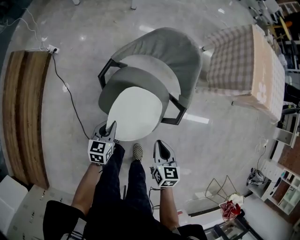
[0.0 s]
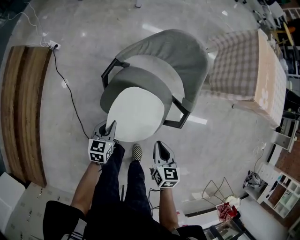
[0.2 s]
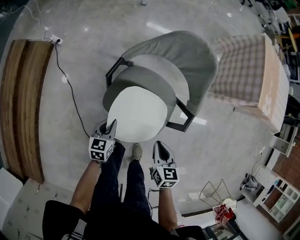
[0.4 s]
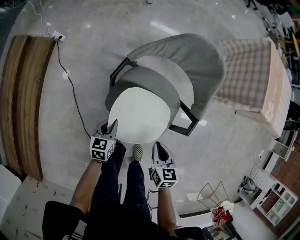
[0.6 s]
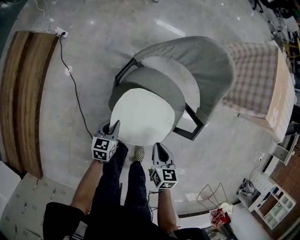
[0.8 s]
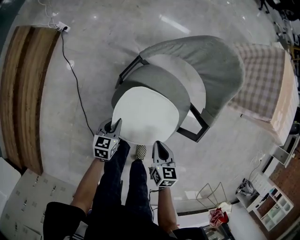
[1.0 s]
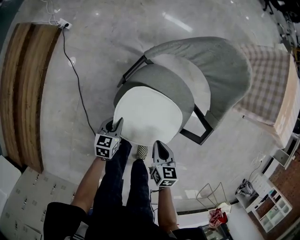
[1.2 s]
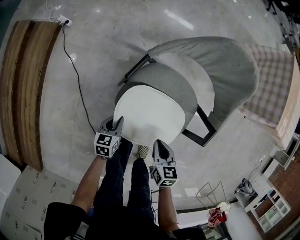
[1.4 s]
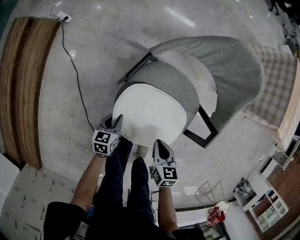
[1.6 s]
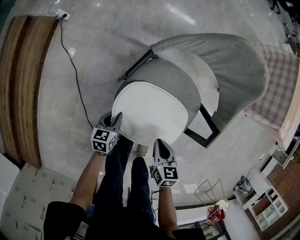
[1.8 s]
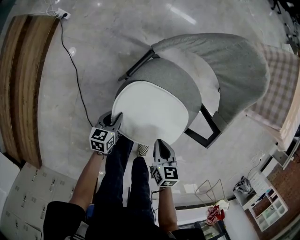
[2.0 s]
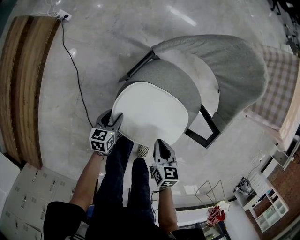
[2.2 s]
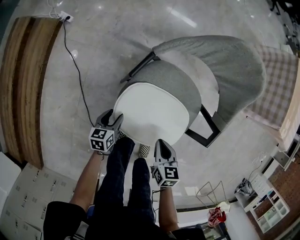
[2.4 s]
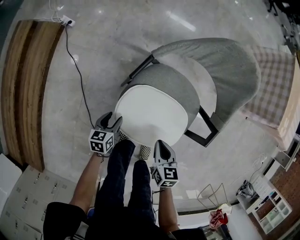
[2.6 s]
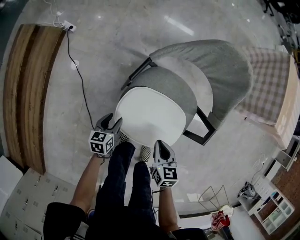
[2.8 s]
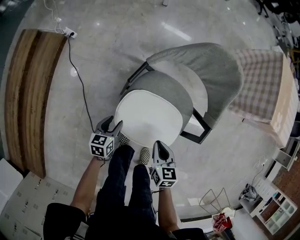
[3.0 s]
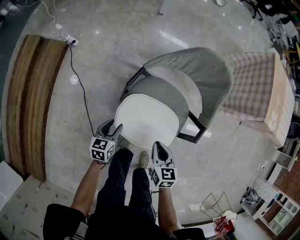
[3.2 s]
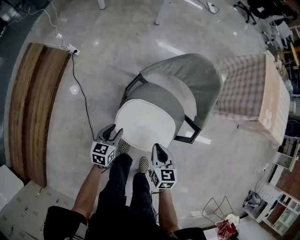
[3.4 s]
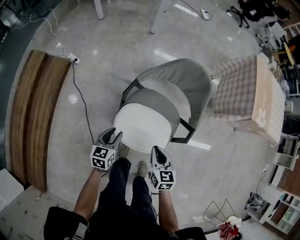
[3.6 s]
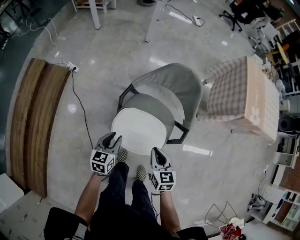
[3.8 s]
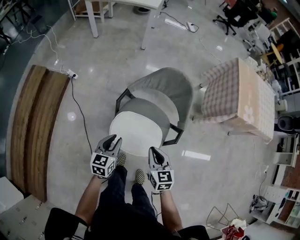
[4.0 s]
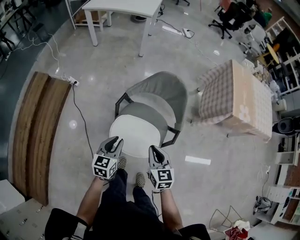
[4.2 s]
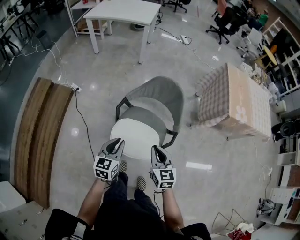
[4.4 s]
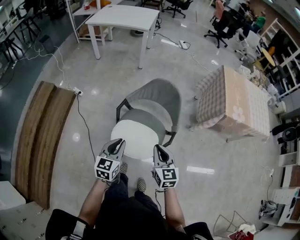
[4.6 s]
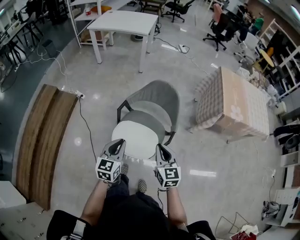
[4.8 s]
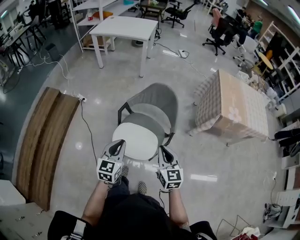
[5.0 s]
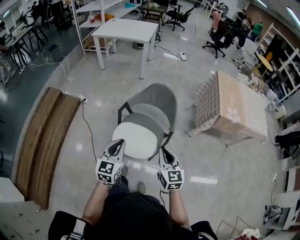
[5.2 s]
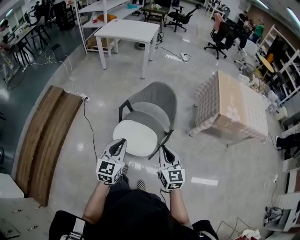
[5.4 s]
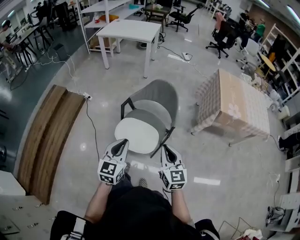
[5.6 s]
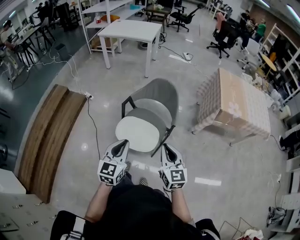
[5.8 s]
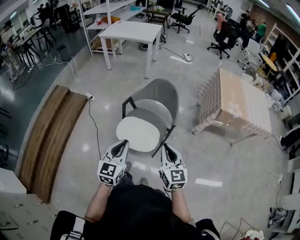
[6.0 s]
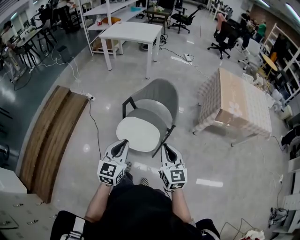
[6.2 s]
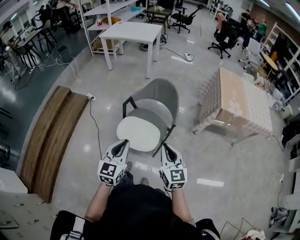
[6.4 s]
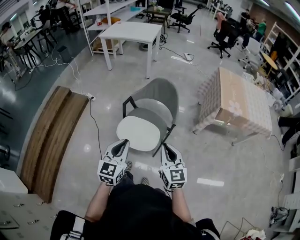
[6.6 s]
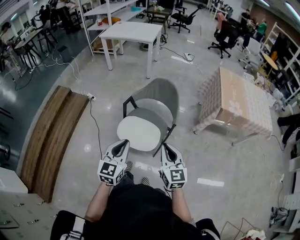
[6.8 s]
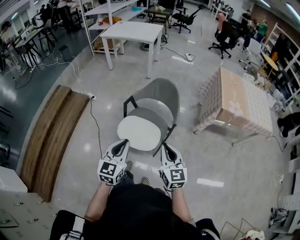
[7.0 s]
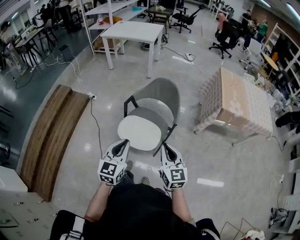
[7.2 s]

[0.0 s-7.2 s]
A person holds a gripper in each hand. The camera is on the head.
0.0 to 1.4 s: The grippers both shift downward and to the left by some 20 cm.
1.4 to 2.8 s: The left gripper opens up.
2.8 to 4.4 s: The grippers both shift upward by approximately 35 cm. The right gripper swivels some 30 degrees; the left gripper changes its angle by some 30 degrees, and closes.
4.4 to 5.8 s: The grippers both shift backward, upward and to the right by some 25 cm.
5.8 to 7.2 s: The grippers move only a little.

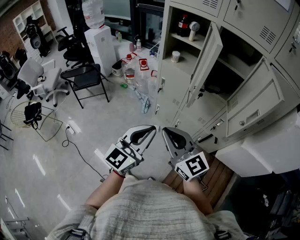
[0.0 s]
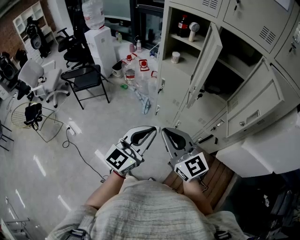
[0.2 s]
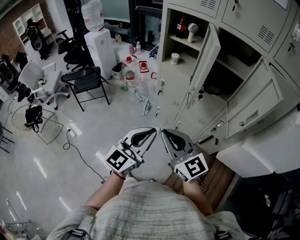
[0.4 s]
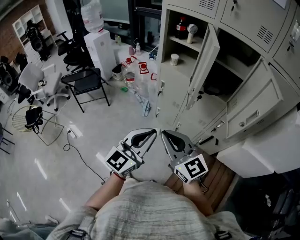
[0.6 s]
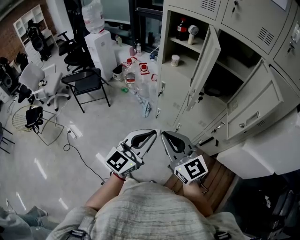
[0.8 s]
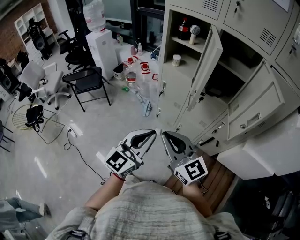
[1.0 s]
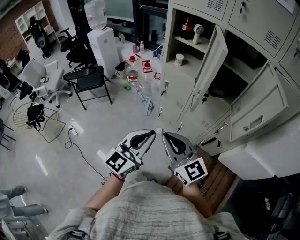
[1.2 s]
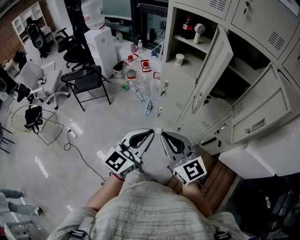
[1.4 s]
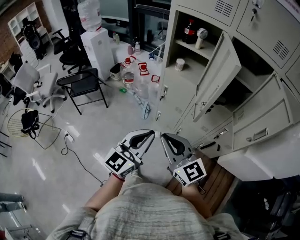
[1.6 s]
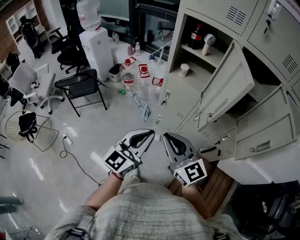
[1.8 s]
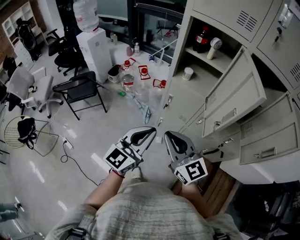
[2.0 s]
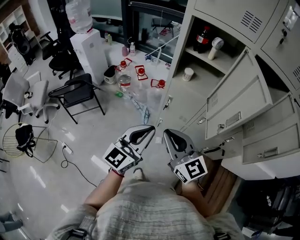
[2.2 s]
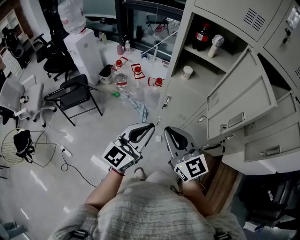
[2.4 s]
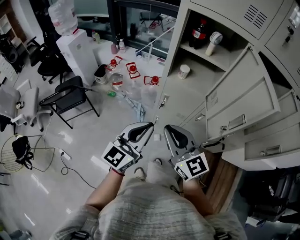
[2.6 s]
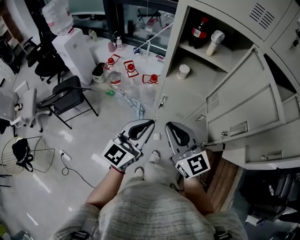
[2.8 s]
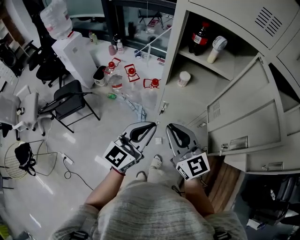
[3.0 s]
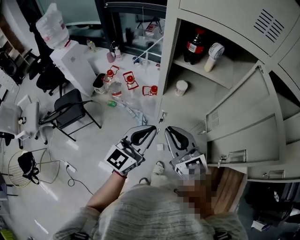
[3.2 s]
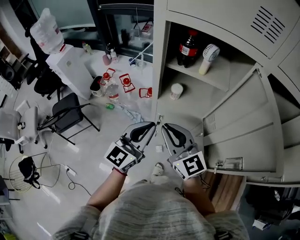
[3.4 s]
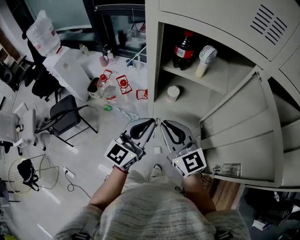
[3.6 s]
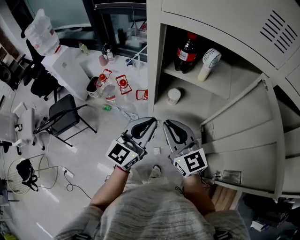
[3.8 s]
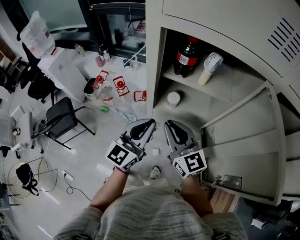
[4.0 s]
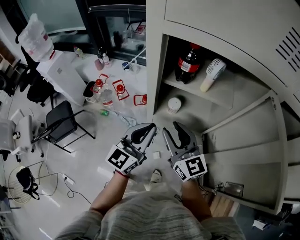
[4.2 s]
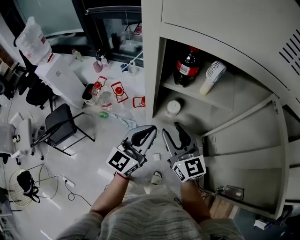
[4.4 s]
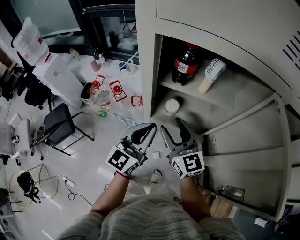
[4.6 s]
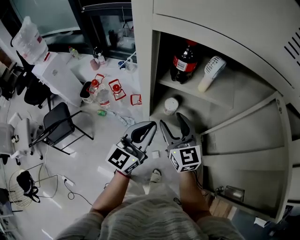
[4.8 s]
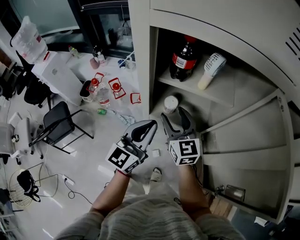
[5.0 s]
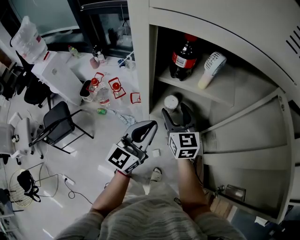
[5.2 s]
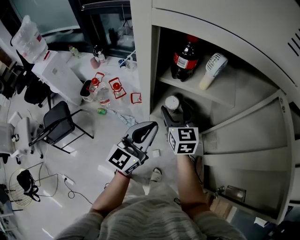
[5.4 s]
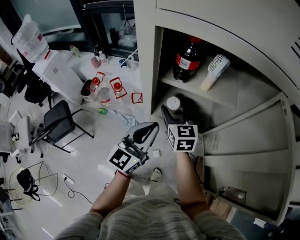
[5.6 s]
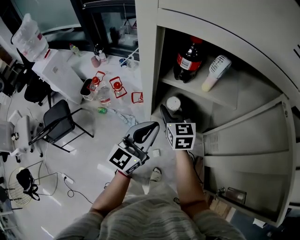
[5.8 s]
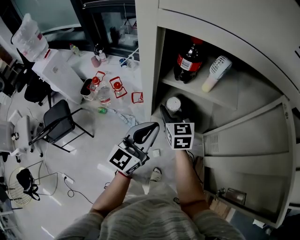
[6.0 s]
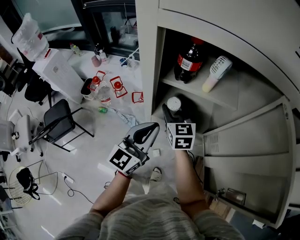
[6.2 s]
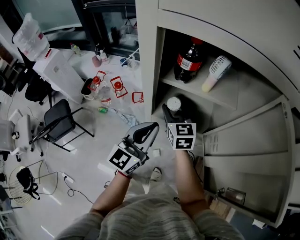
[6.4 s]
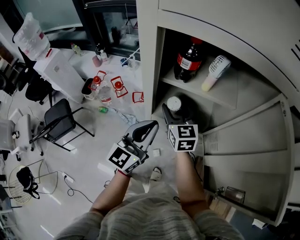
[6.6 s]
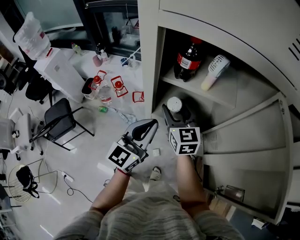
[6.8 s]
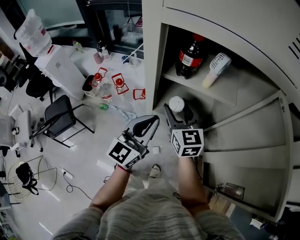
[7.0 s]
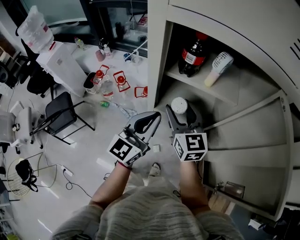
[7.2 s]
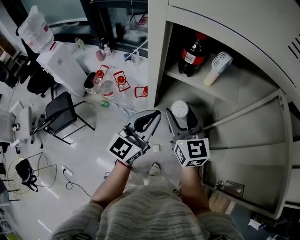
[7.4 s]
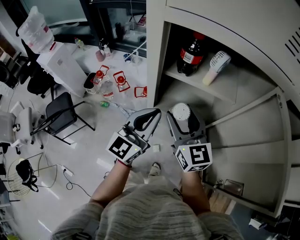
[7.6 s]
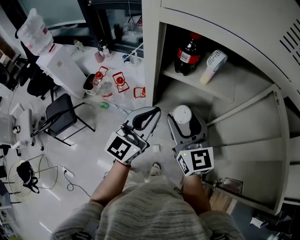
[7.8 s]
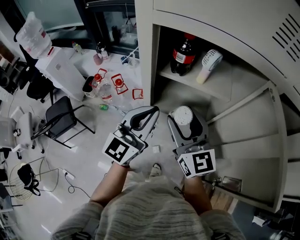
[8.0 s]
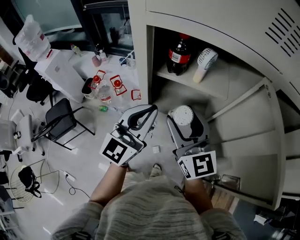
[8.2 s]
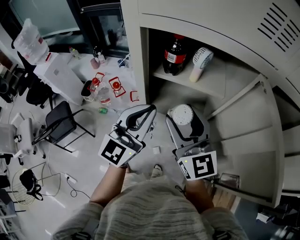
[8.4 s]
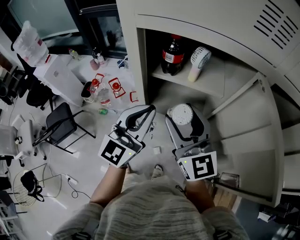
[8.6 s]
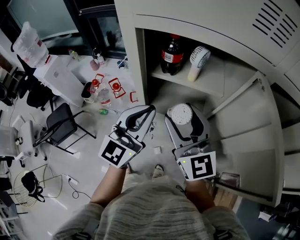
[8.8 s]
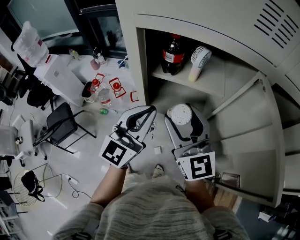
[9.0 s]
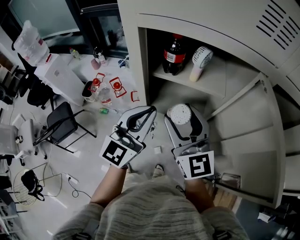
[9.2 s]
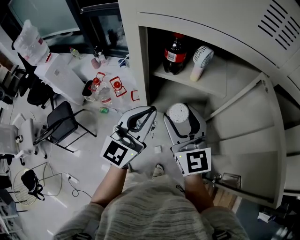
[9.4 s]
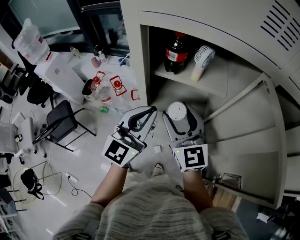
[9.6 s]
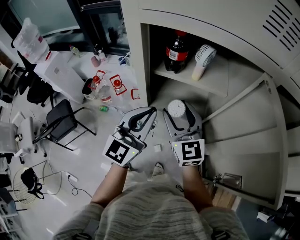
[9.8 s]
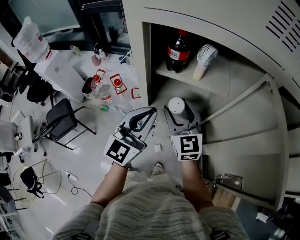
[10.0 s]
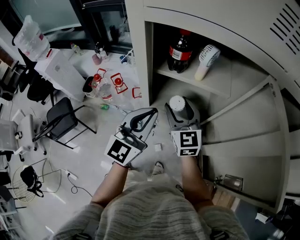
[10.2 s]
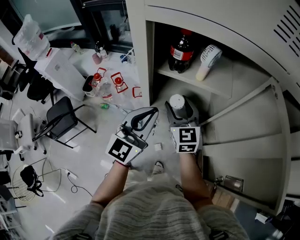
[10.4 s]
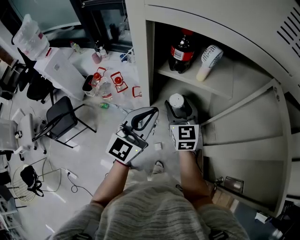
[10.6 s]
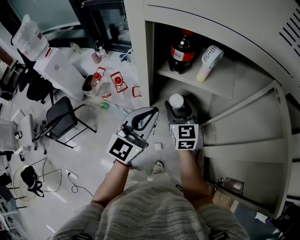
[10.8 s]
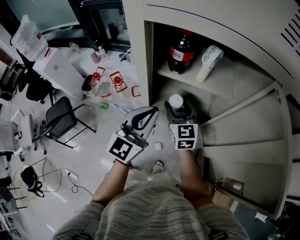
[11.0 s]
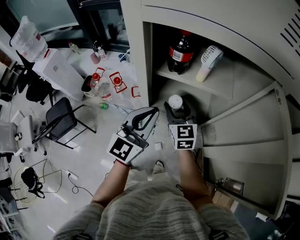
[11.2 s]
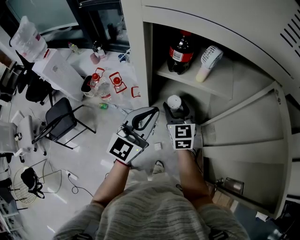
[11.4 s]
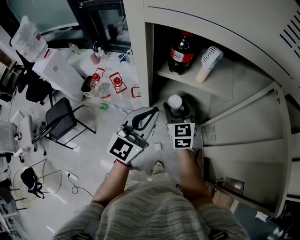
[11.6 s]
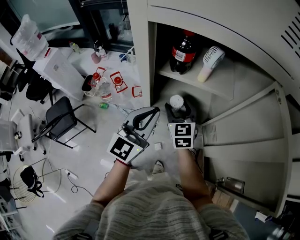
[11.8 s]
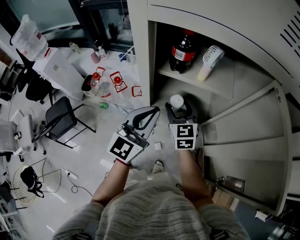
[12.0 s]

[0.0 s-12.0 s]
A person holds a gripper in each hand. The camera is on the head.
0.0 to 1.6 s: The grippers both shift forward by roughly 5 cm.
1.6 to 3.0 s: The two grippers go approximately 25 cm forward.
3.0 to 4.4 s: Both grippers move forward, roughly 20 cm. The right gripper opens its fingers.
4.4 to 6.0 s: The right gripper shifts approximately 15 cm forward and downward, rotates some 20 degrees, and opens up.
6.0 to 7.6 s: The right gripper goes approximately 15 cm upward and backward.
7.6 to 9.0 s: Both grippers travel together upward, about 5 cm.
9.0 to 10.4 s: The right gripper moves downward and forward, approximately 15 cm; the left gripper goes approximately 5 cm downward.
10.4 to 12.0 s: There are only small adjustments of the grippers.

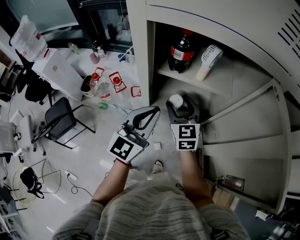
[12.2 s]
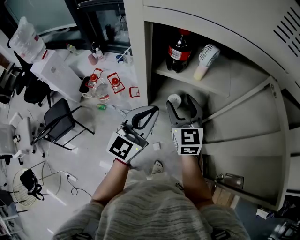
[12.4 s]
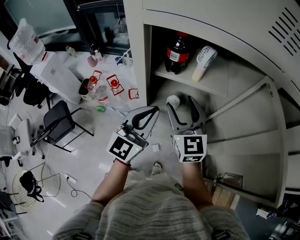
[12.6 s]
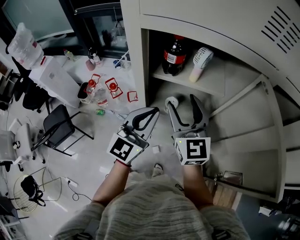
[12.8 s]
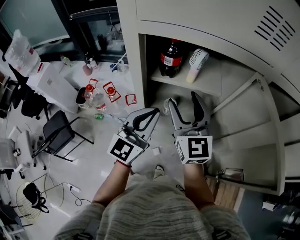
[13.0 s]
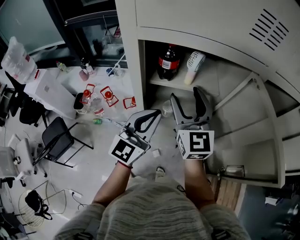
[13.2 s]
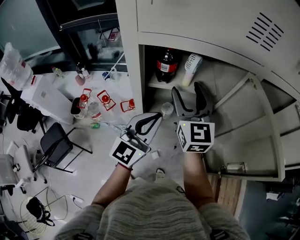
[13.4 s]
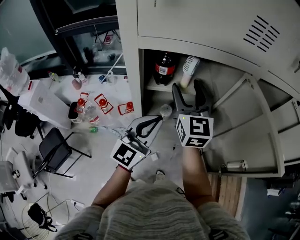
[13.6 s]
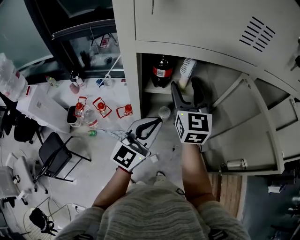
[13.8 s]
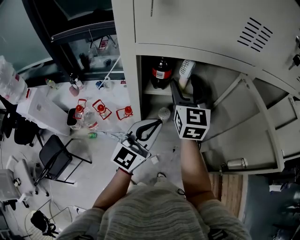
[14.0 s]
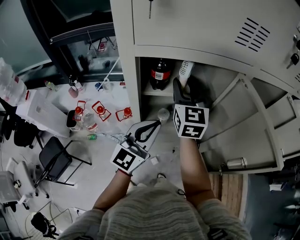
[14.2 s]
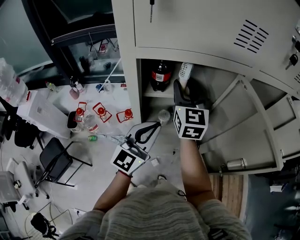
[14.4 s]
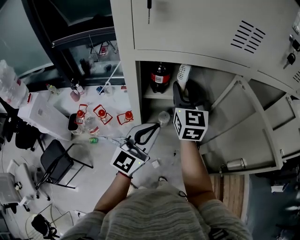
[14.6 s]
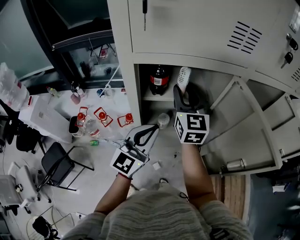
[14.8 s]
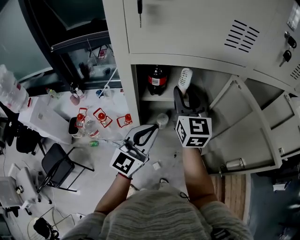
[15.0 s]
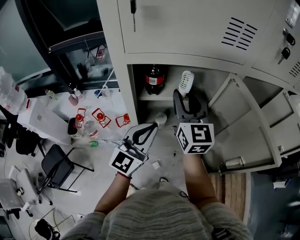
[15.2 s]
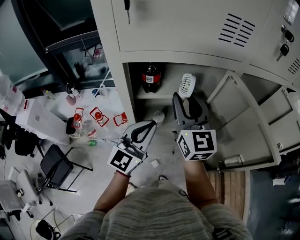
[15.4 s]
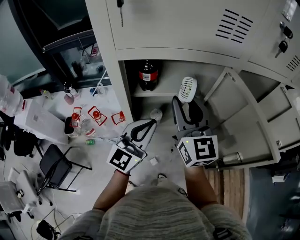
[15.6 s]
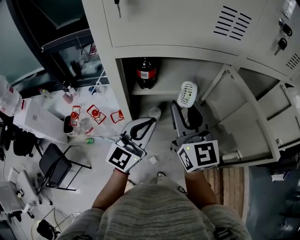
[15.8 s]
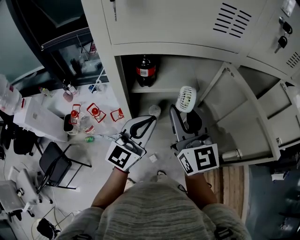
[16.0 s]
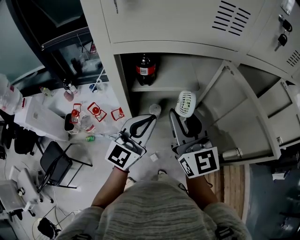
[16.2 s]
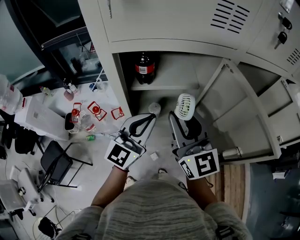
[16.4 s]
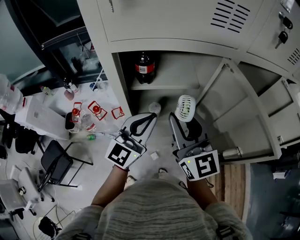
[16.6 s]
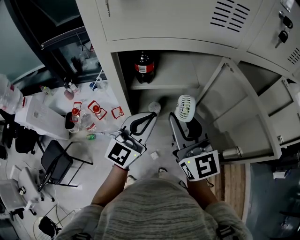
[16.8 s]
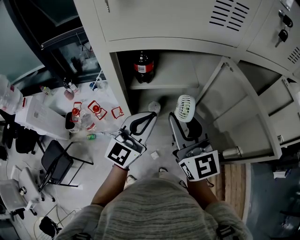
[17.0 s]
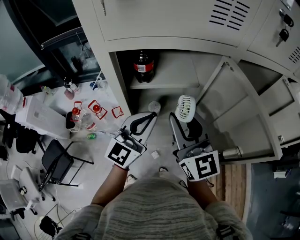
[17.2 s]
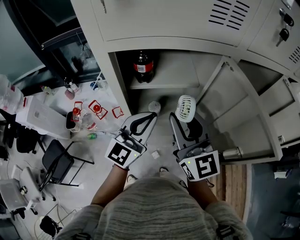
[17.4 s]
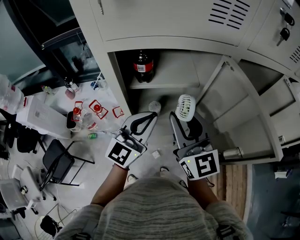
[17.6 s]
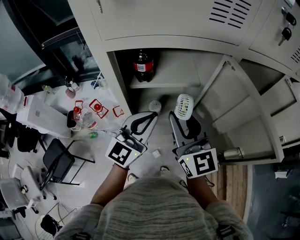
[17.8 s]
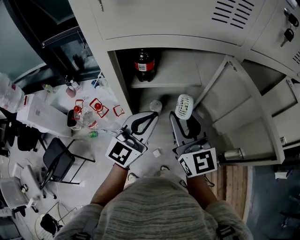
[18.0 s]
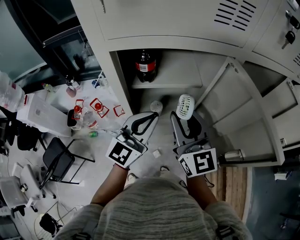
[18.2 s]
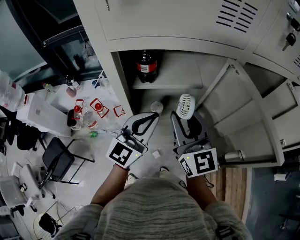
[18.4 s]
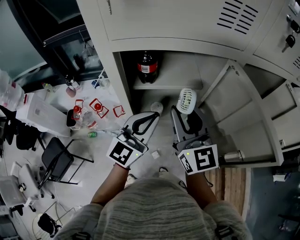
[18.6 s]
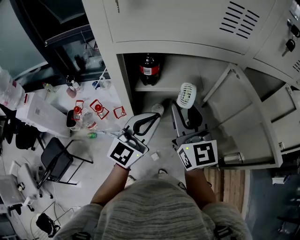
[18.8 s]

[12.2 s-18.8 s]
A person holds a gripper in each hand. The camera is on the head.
12.2 to 13.8 s: The right gripper moves upward, about 20 cm, and rotates some 20 degrees.
13.8 to 15.4 s: The right gripper ends up about 5 cm from where it was, and closes its fingers.
15.4 to 17.2 s: The right gripper shifts about 10 cm backward.
17.2 to 18.8 s: There are only small adjustments of the grippers.
